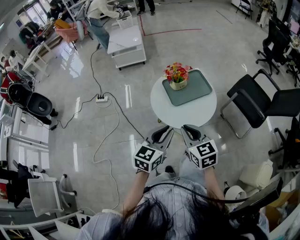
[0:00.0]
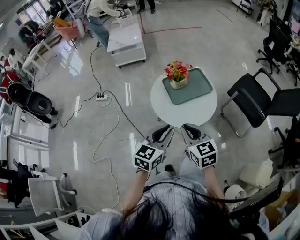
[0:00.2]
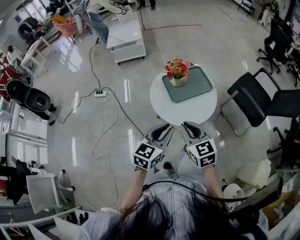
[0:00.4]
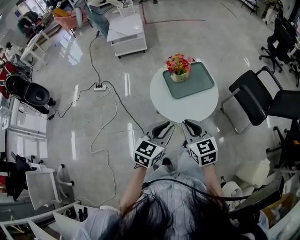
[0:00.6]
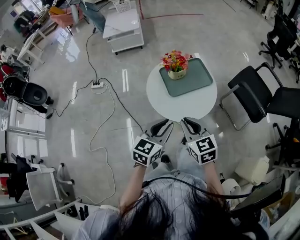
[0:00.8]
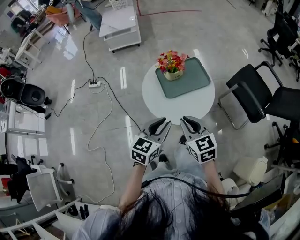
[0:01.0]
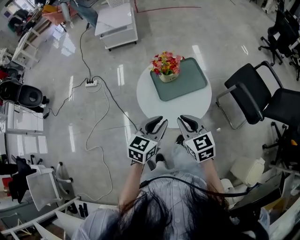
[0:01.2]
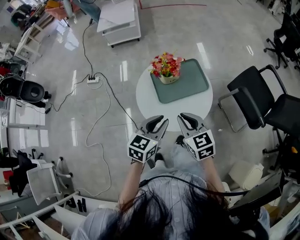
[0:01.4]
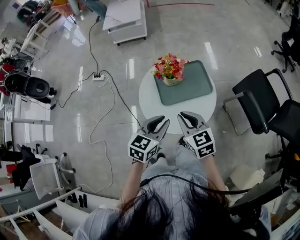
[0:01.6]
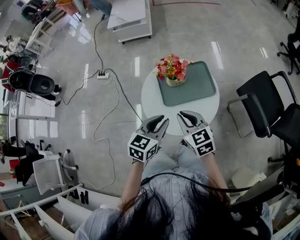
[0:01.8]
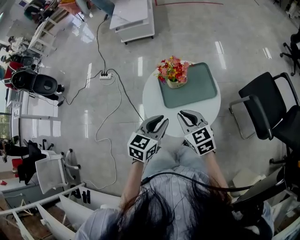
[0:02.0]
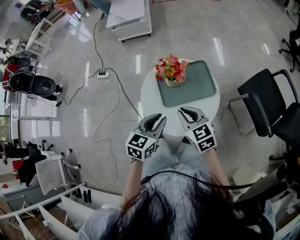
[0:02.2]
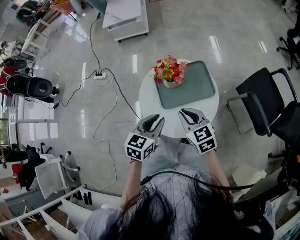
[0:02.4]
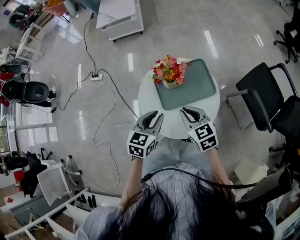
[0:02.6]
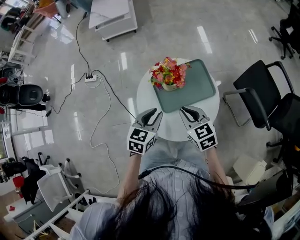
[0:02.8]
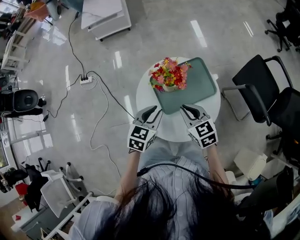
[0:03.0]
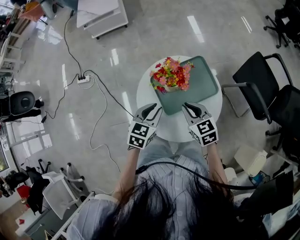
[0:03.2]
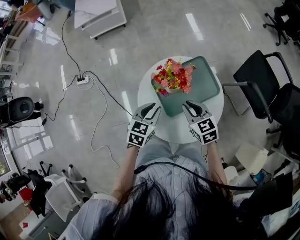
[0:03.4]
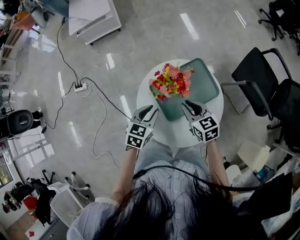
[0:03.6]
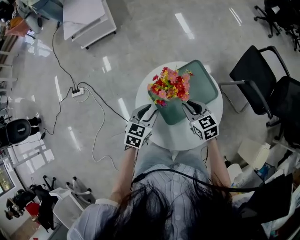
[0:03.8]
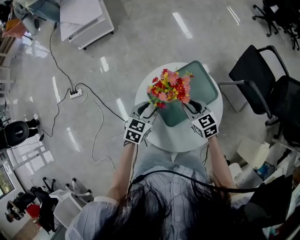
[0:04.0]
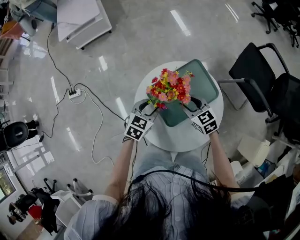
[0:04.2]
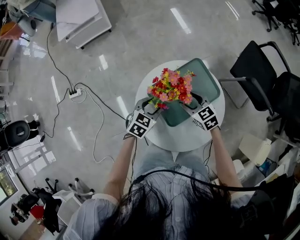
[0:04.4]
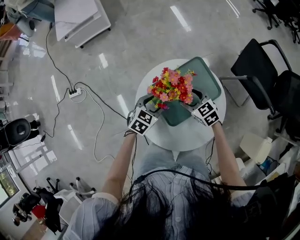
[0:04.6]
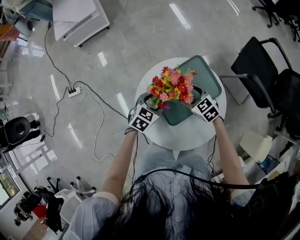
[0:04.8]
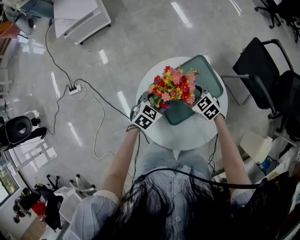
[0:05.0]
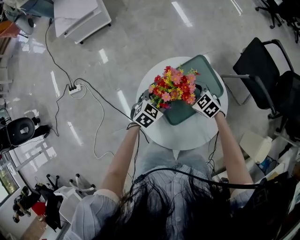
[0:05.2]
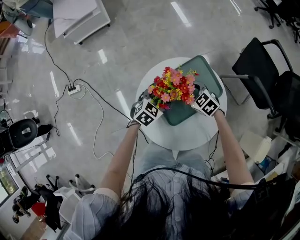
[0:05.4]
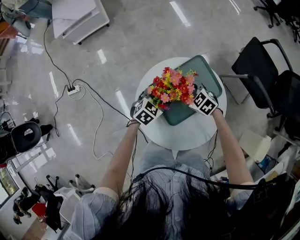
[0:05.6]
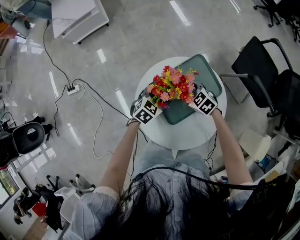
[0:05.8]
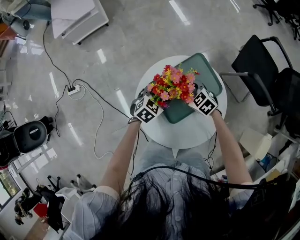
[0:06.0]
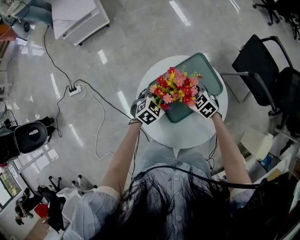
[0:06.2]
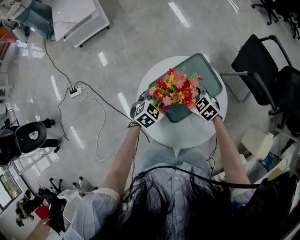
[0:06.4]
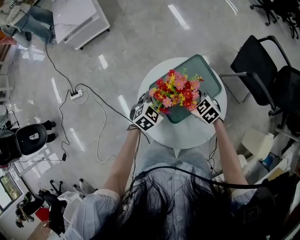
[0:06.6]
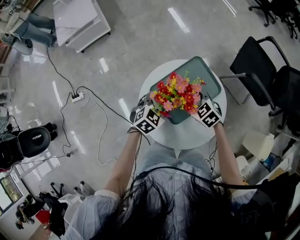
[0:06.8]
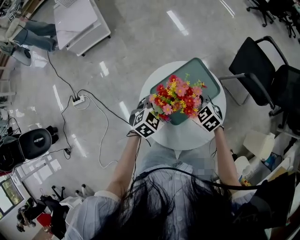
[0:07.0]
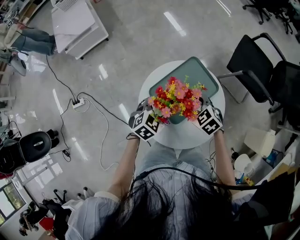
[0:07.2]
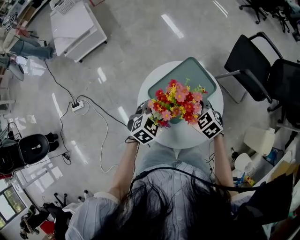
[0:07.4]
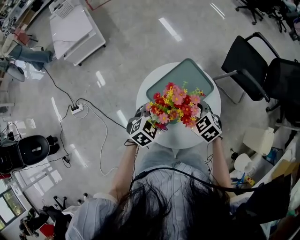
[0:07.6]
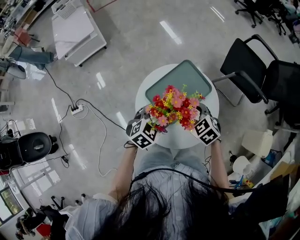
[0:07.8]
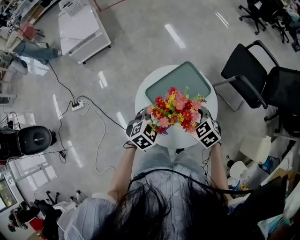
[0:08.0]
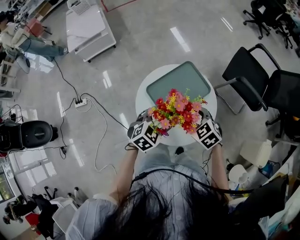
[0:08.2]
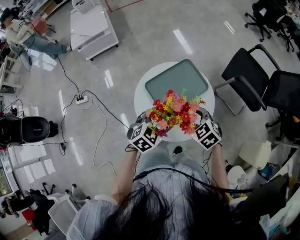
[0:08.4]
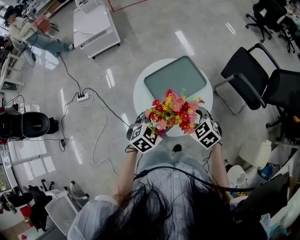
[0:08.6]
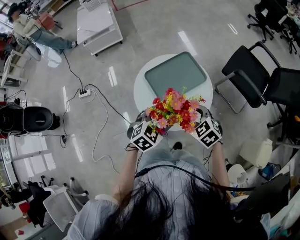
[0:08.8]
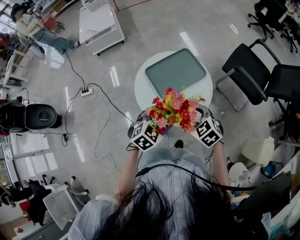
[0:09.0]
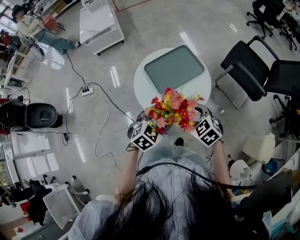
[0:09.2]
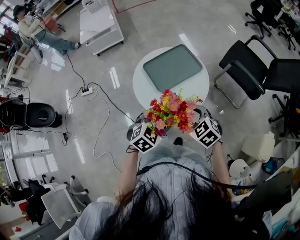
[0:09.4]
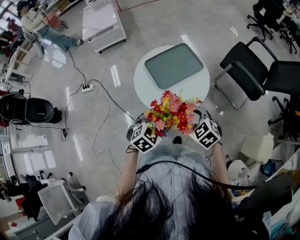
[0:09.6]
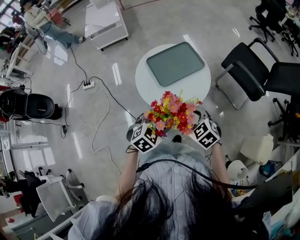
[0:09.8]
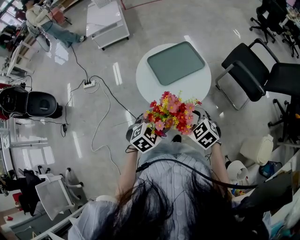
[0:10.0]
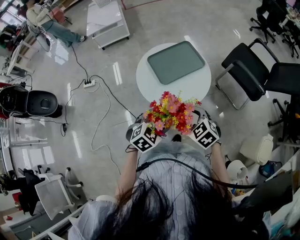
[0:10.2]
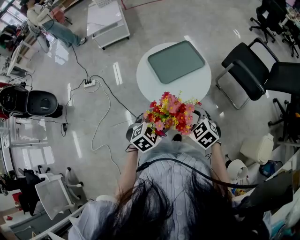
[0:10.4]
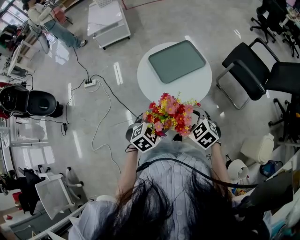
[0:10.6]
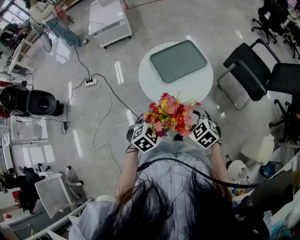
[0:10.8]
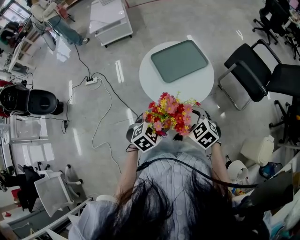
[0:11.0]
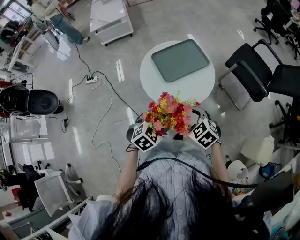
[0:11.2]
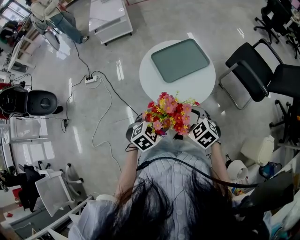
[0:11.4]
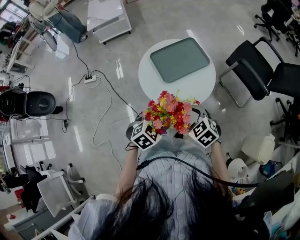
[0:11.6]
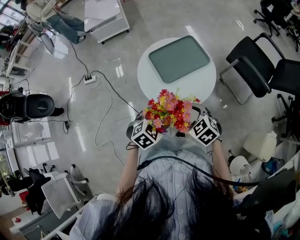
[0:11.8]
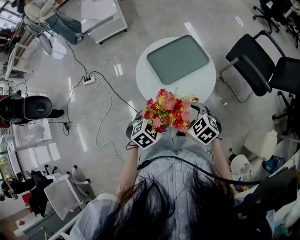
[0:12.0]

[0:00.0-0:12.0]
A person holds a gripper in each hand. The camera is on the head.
0:00.0 to 0:01.6: The right gripper goes approximately 15 cm forward and to the right. The left gripper travels forward, to the right and downward by approximately 15 cm.
0:01.6 to 0:03.0: The right gripper heads forward and downward, covering roughly 15 cm; the left gripper shifts roughly 15 cm forward, downward and to the left.
0:03.0 to 0:04.4: The grippers both shift downward and forward by some 15 cm. The right gripper opens. Meanwhile the left gripper turns by about 30 degrees, and opens.
0:04.4 to 0:06.0: The right gripper ends up roughly 5 cm from where it was, while the left gripper changes place by roughly 5 cm, and opens up.
0:06.0 to 0:07.6: Both grippers travel together upward and backward, roughly 15 cm.
0:07.6 to 0:09.0: The two grippers go approximately 20 cm backward and to the right.
0:09.0 to 0:10.4: The two grippers go roughly 10 cm backward.
0:10.4 to 0:12.0: The left gripper ends up roughly 5 cm from where it was, while the right gripper moves approximately 5 cm.

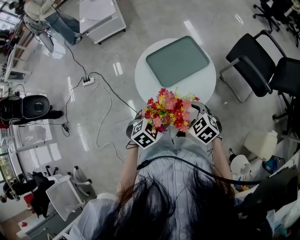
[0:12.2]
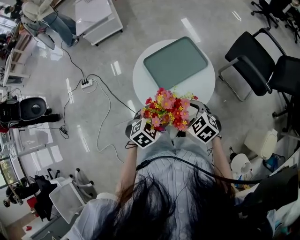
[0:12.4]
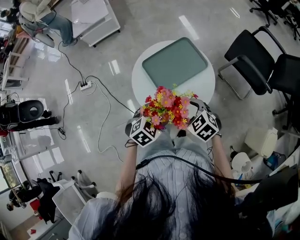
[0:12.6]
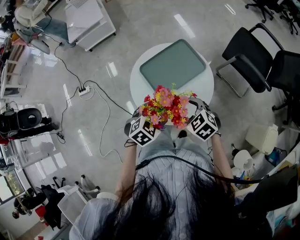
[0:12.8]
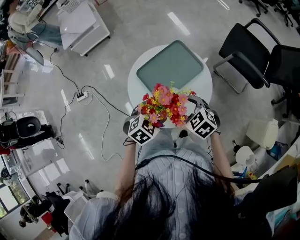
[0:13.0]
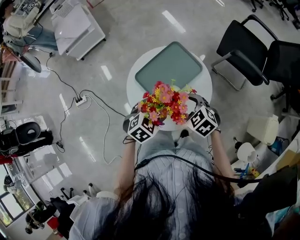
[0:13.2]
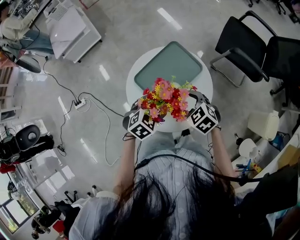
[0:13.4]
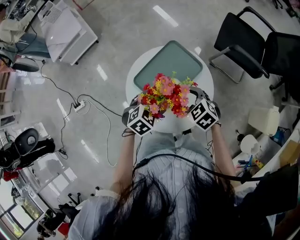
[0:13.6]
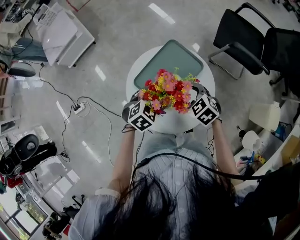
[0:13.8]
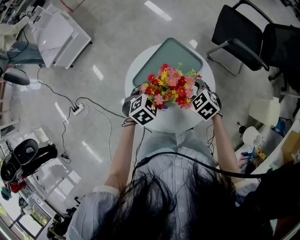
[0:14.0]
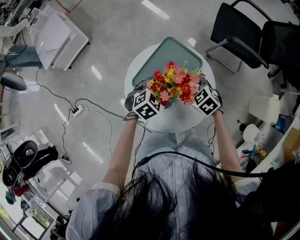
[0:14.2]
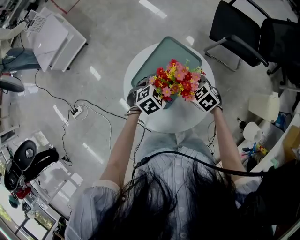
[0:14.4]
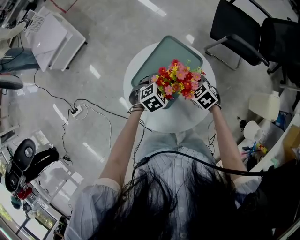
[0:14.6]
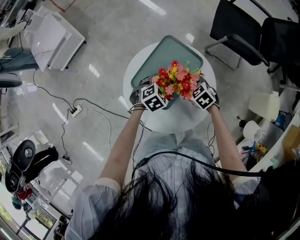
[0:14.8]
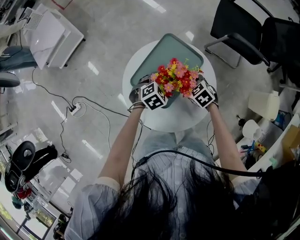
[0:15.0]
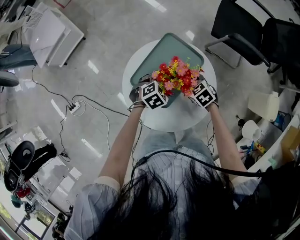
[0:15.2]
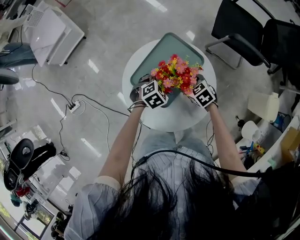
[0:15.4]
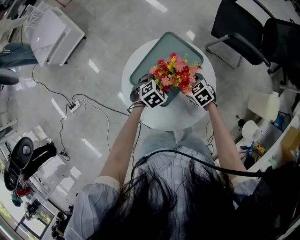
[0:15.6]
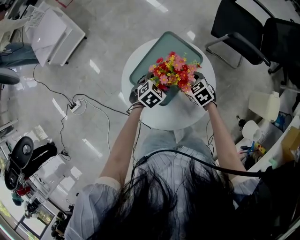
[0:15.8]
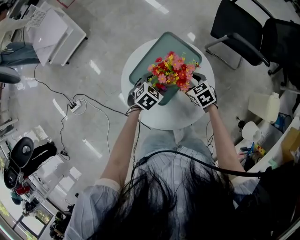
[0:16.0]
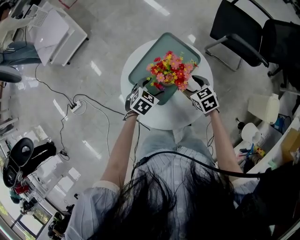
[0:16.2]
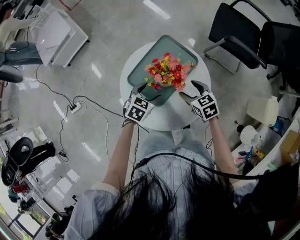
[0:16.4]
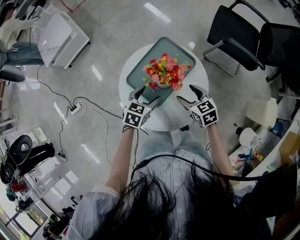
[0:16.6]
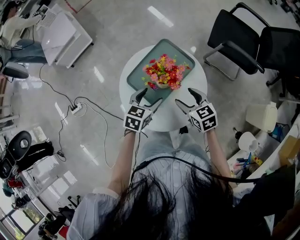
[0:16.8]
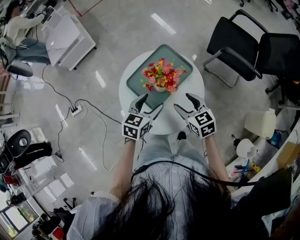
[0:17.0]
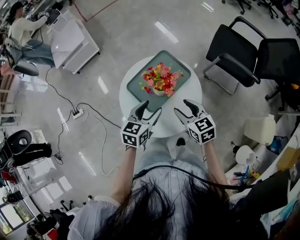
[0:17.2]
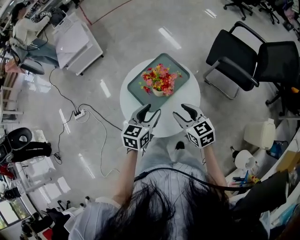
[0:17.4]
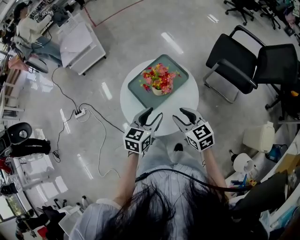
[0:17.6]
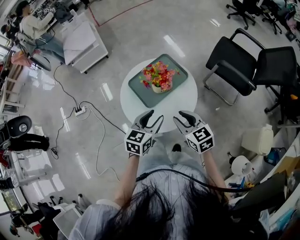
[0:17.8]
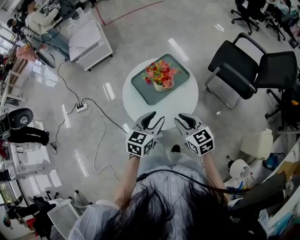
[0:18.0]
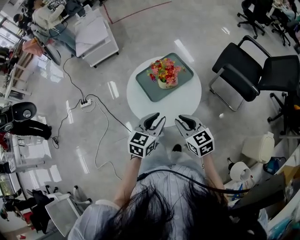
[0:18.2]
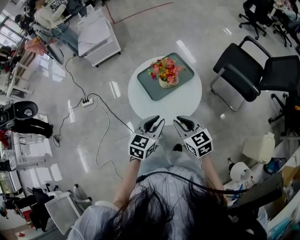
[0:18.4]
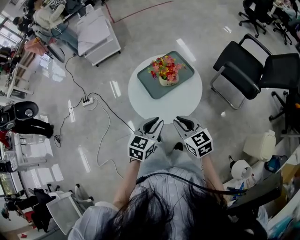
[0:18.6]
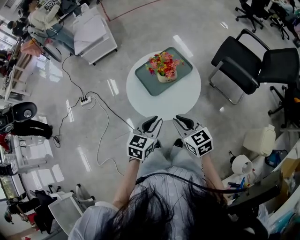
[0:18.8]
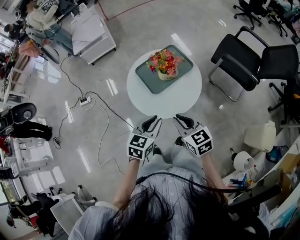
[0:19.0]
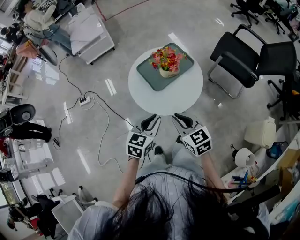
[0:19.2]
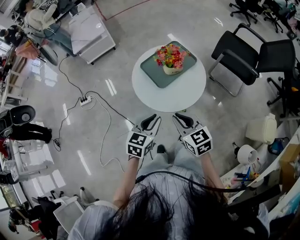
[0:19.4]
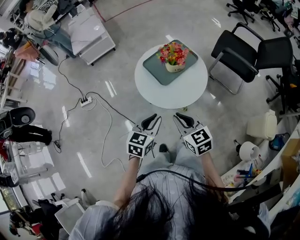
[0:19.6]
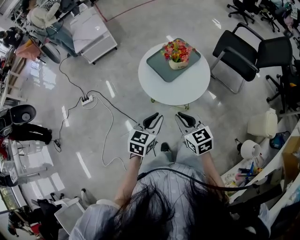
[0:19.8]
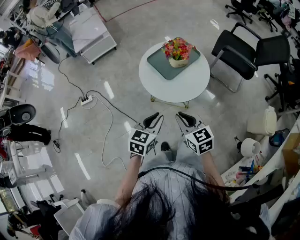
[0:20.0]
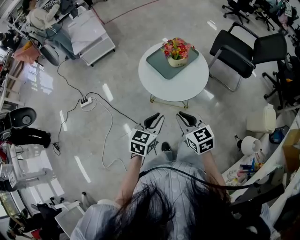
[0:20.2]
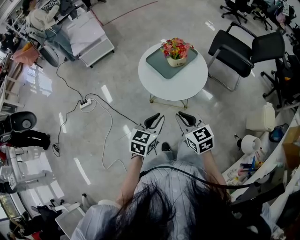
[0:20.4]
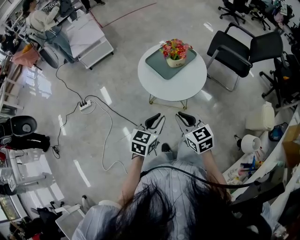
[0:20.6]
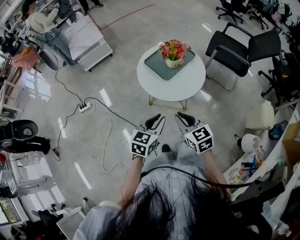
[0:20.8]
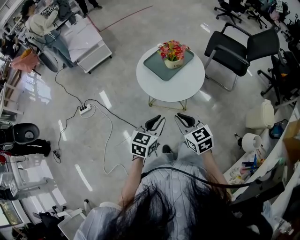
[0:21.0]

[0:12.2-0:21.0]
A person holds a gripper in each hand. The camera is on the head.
0:12.2 to 0:13.6: The grippers both shift forward by roughly 20 cm.
0:13.6 to 0:15.2: Both grippers move downward and forward, approximately 15 cm.
0:15.2 to 0:16.6: Both grippers travel together upward, approximately 10 cm. The right gripper turns by roughly 20 degrees, while the left gripper swivels some 40 degrees.
0:16.6 to 0:18.0: The right gripper heads backward and upward, covering some 20 cm, swivels some 20 degrees, and closes up. The left gripper moves backward, upward and to the right, some 20 cm, turns by about 30 degrees, and closes.
0:18.0 to 0:19.6: Both grippers move to the left and backward, about 15 cm.
0:19.6 to 0:21.0: The two grippers go some 5 cm backward.

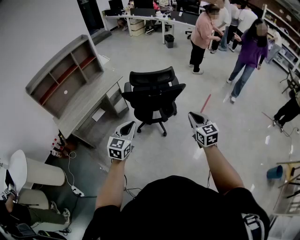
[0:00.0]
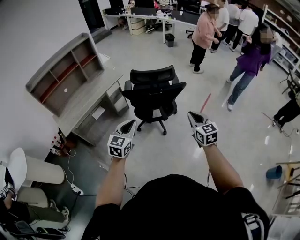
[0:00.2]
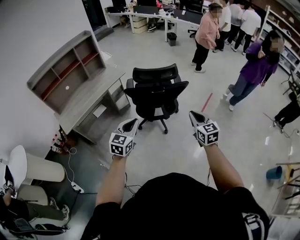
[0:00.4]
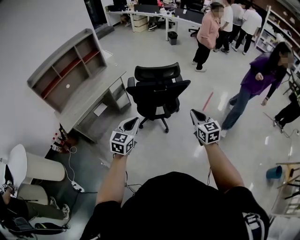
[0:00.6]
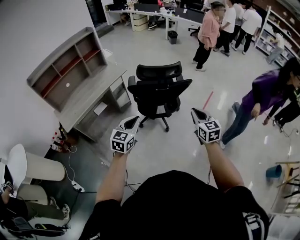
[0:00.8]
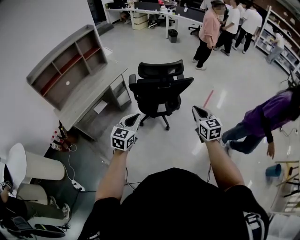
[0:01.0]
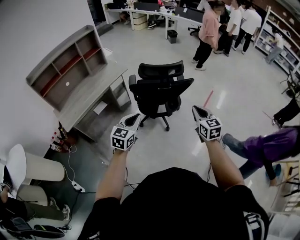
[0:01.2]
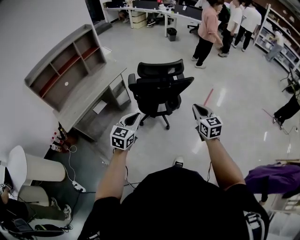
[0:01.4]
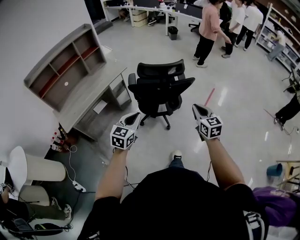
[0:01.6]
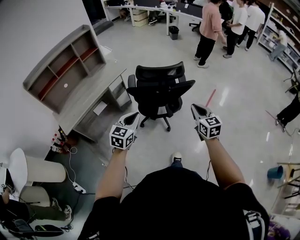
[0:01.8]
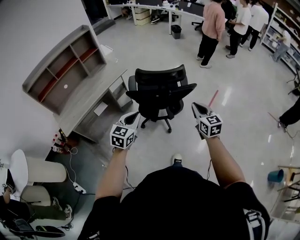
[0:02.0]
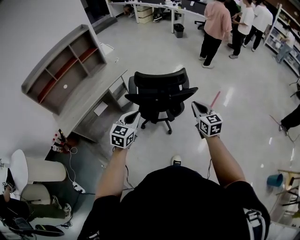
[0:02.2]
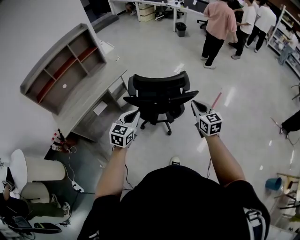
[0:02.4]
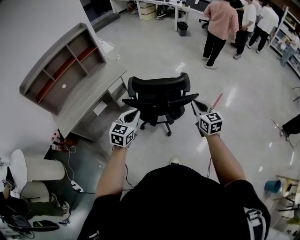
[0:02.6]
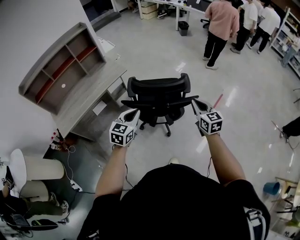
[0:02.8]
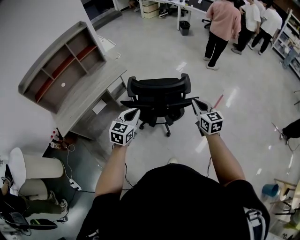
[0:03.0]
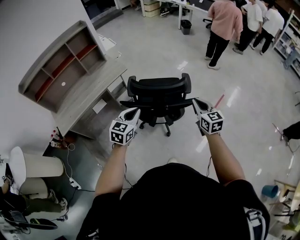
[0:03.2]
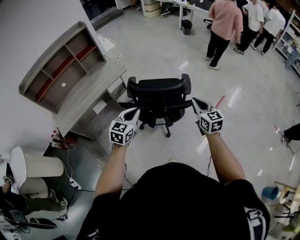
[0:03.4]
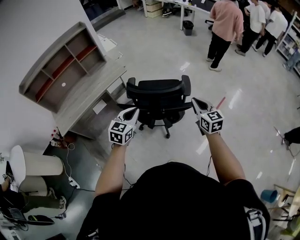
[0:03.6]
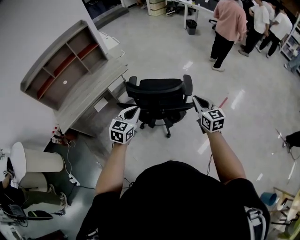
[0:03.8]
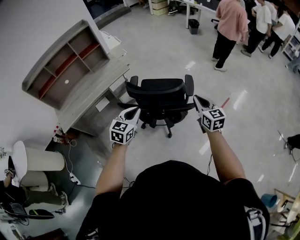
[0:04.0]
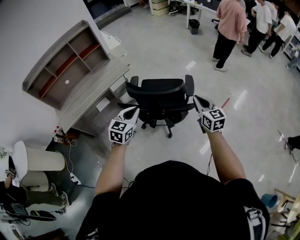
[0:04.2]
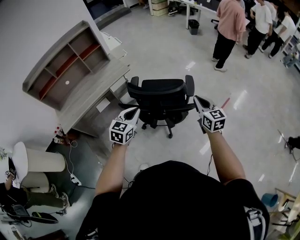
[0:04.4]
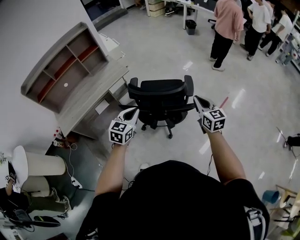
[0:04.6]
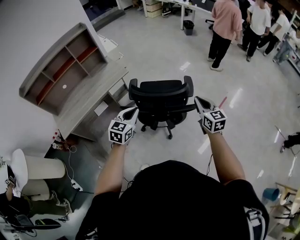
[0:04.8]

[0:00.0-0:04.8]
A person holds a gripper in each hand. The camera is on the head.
0:00.0 to 0:01.6: The right gripper shifts by some 5 cm; the left gripper moves some 5 cm.
0:01.6 to 0:03.2: The two grippers go some 25 cm forward.
